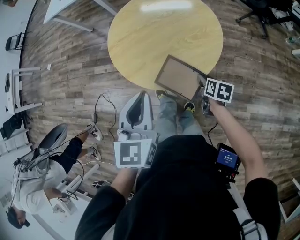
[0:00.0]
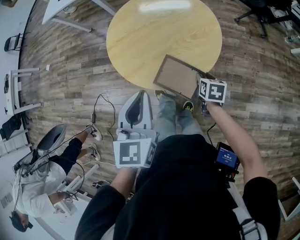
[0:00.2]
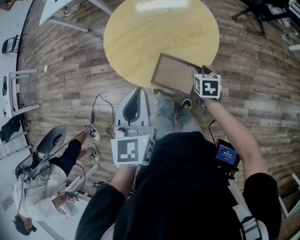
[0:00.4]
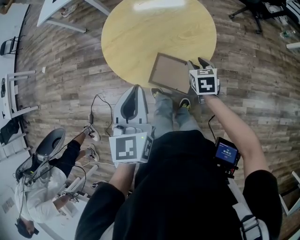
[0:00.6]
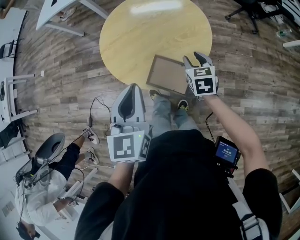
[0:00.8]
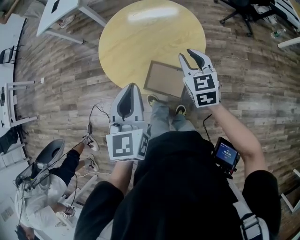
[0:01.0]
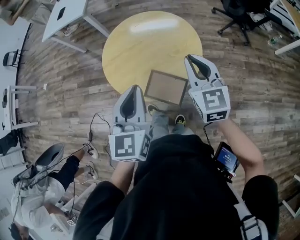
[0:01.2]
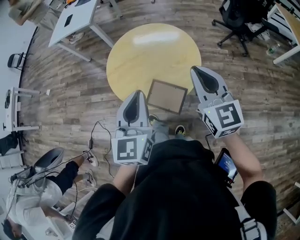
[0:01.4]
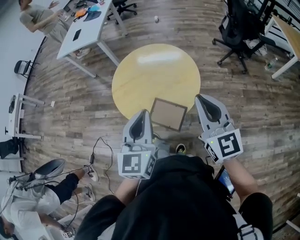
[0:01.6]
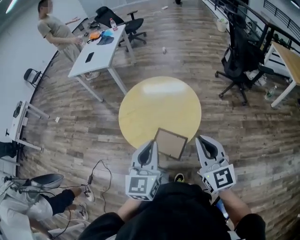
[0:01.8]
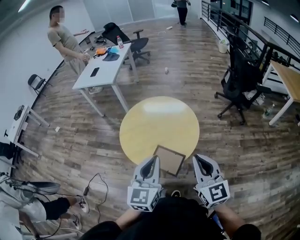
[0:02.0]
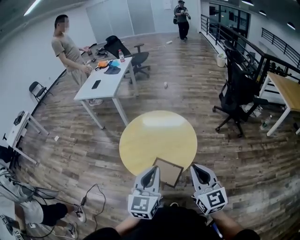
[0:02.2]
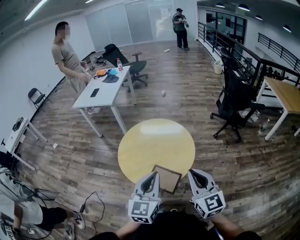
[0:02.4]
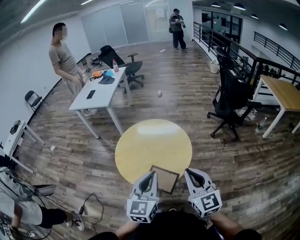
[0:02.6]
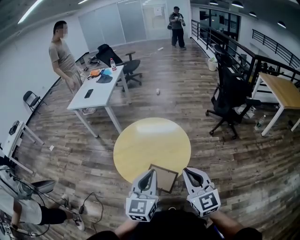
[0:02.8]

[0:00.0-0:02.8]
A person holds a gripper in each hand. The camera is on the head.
0:00.0 to 0:01.4: The right gripper shifts about 35 cm upward, tips its fingers upward by some 50 degrees, and closes up. Meanwhile the left gripper travels upward by some 10 cm.
0:01.4 to 0:02.8: The left gripper changes place by some 5 cm. Meanwhile the right gripper travels backward by roughly 10 cm.

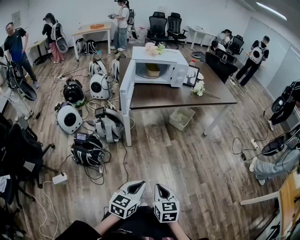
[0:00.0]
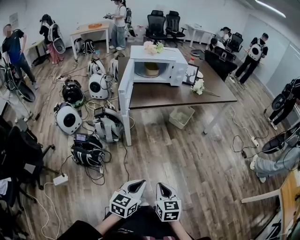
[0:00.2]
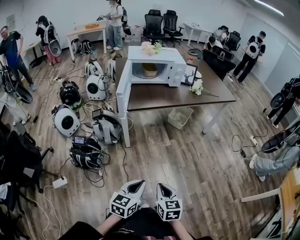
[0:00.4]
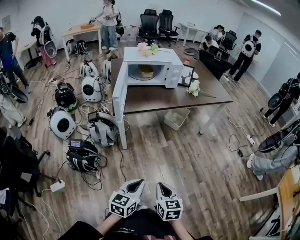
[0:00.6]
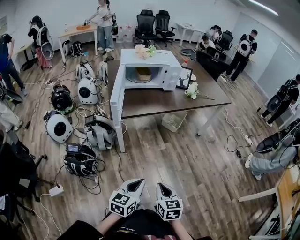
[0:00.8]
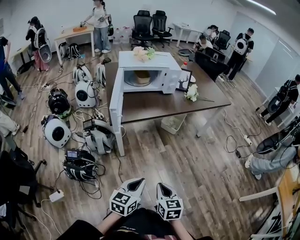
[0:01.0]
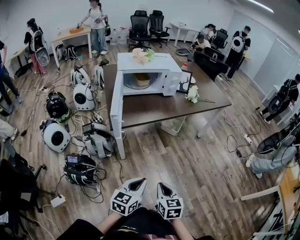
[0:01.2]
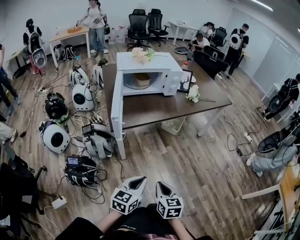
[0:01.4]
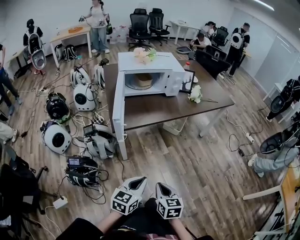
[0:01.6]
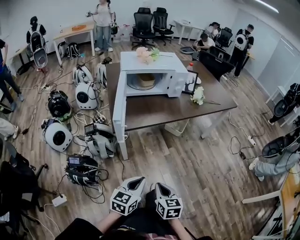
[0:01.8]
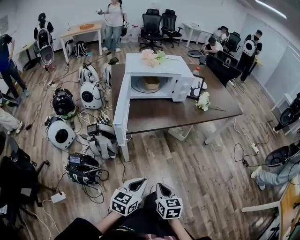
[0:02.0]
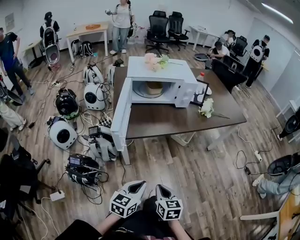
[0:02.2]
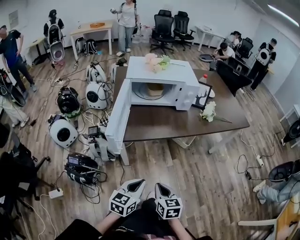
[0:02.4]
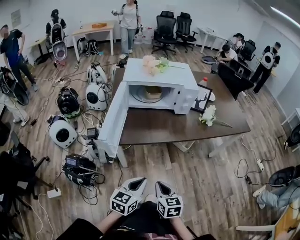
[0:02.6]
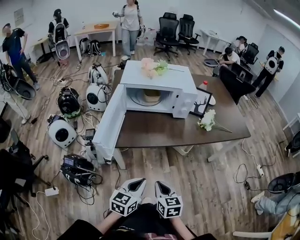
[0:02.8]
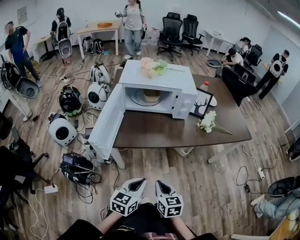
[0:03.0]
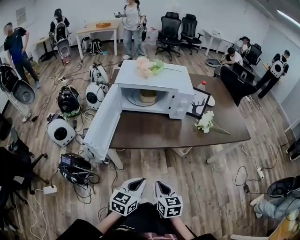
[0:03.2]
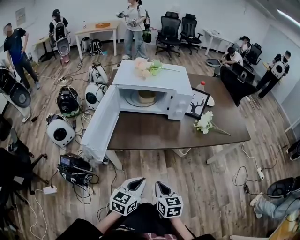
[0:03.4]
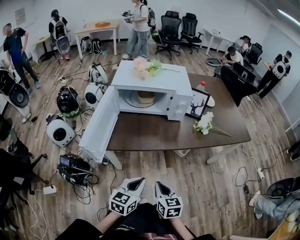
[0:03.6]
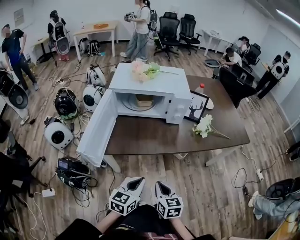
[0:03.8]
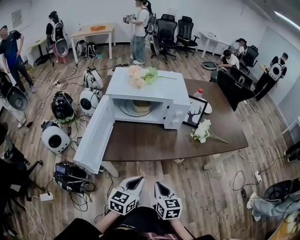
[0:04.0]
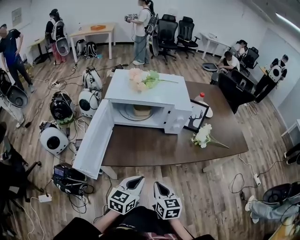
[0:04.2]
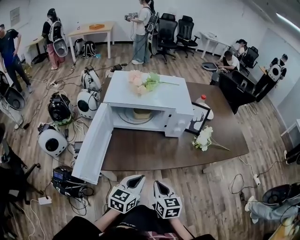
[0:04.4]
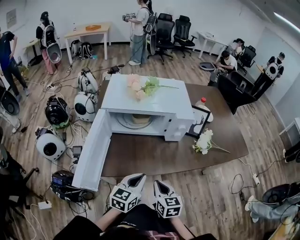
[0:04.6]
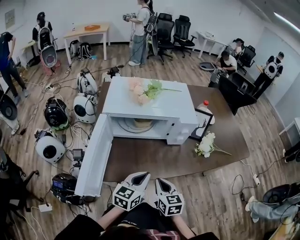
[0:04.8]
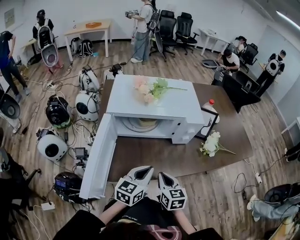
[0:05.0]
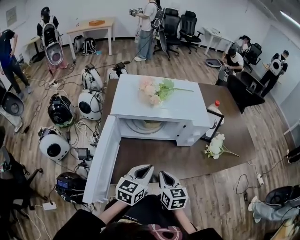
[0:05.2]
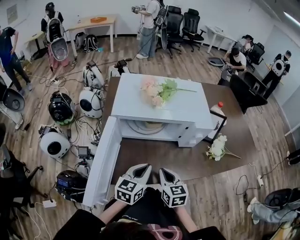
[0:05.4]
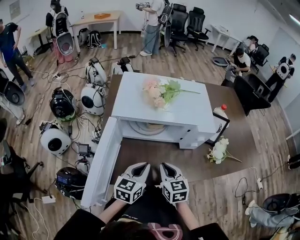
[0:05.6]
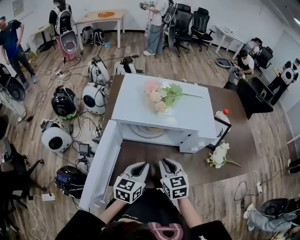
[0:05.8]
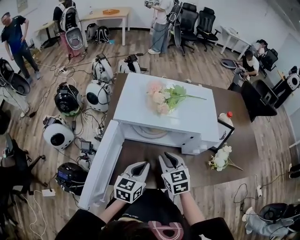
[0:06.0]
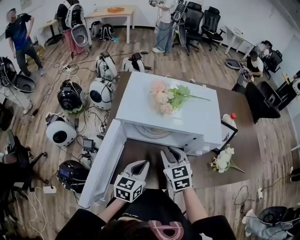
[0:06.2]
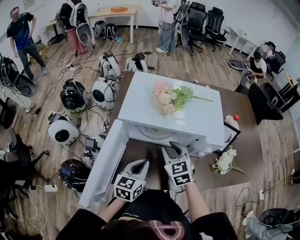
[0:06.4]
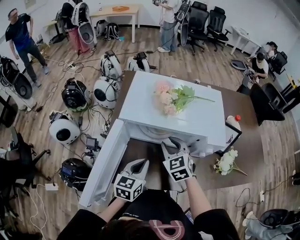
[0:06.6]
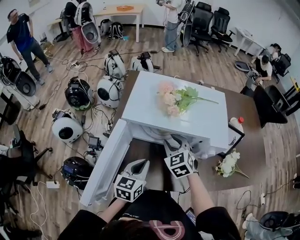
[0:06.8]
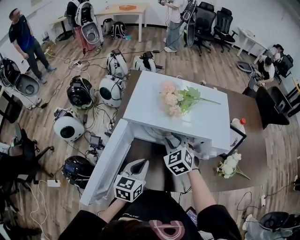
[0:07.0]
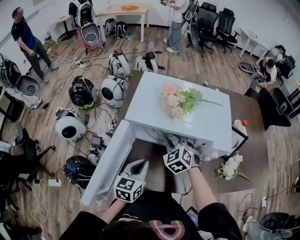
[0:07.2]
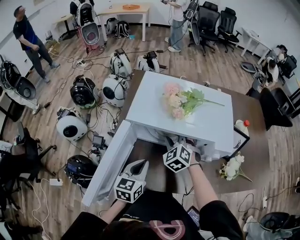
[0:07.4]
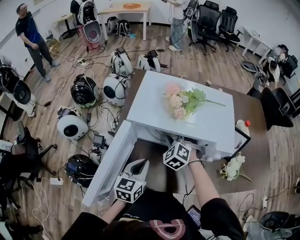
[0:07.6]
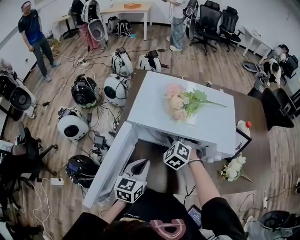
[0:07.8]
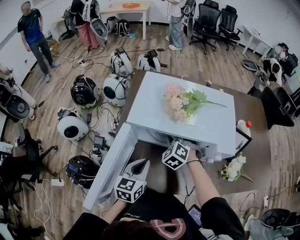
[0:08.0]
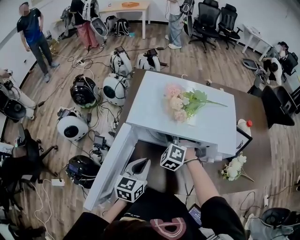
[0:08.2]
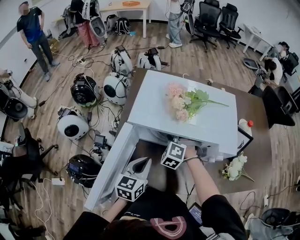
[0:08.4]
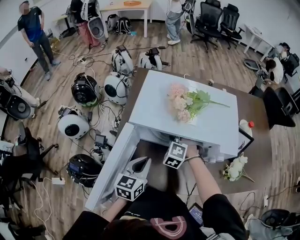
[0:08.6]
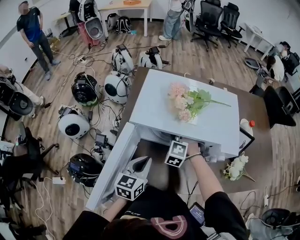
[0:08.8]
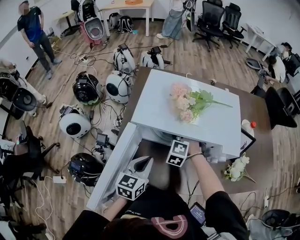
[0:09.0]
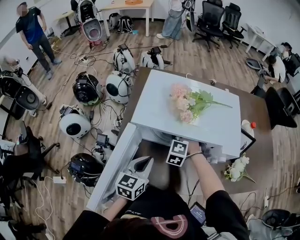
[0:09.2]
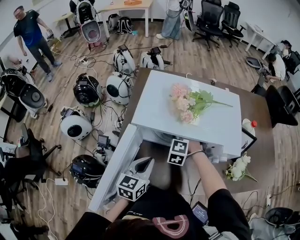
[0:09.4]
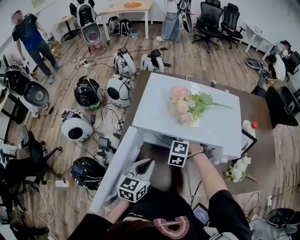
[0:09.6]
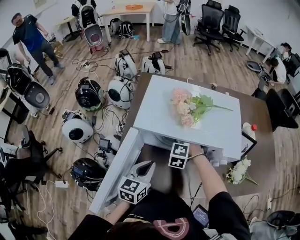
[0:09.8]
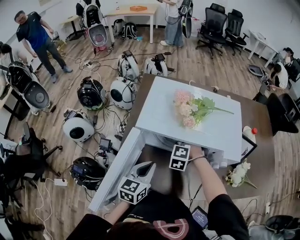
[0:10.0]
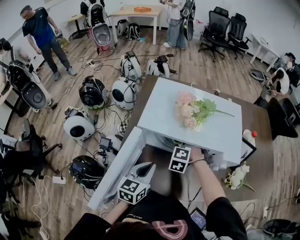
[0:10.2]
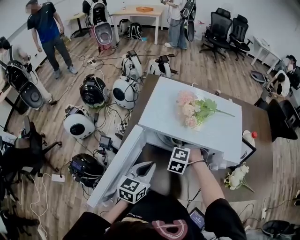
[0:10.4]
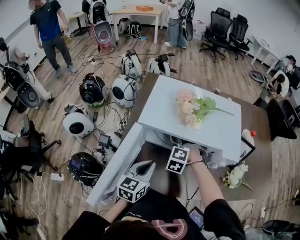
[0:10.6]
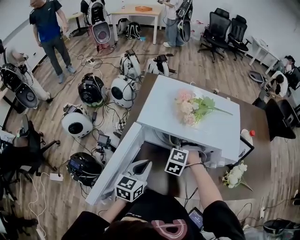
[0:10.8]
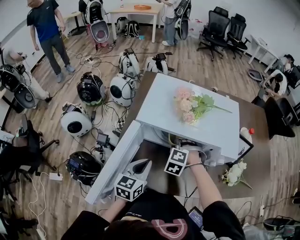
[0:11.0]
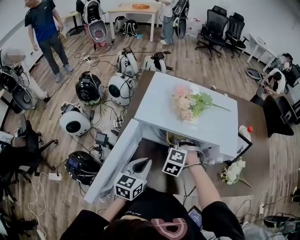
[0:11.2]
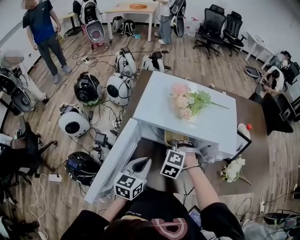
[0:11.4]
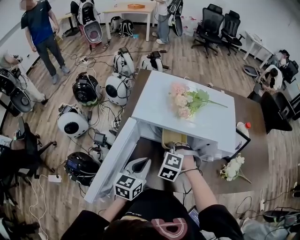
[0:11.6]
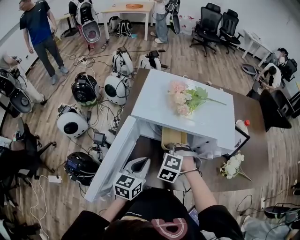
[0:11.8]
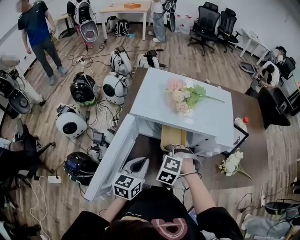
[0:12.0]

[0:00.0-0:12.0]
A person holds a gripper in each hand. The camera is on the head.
0:00.0 to 0:01.6: Both grippers travel together forward and to the left, about 20 cm.
0:01.6 to 0:03.0: The two grippers go approximately 20 cm forward and to the right.
0:03.0 to 0:04.4: The grippers both shift forward by approximately 15 cm.
0:04.4 to 0:06.0: The left gripper travels forward and to the left by roughly 20 cm; the right gripper goes approximately 25 cm forward, and changes its angle by roughly 20 degrees.
0:06.0 to 0:07.6: The right gripper moves forward, about 10 cm, and twists some 50 degrees counterclockwise, seen from behind. Meanwhile the left gripper shifts approximately 5 cm to the left.
0:07.6 to 0:09.0: The right gripper rotates roughly 20 degrees.
0:09.0 to 0:10.4: The grippers stay close to where they were, moving slightly.
0:10.4 to 0:12.0: The right gripper goes approximately 10 cm backward.

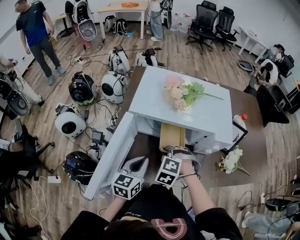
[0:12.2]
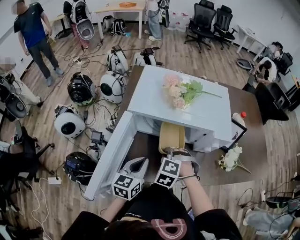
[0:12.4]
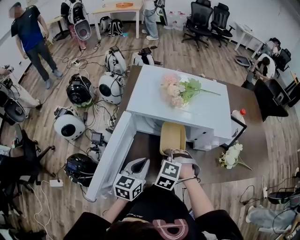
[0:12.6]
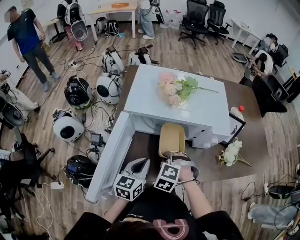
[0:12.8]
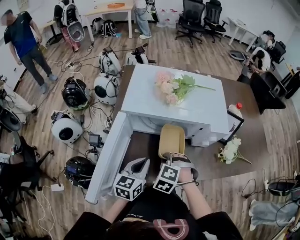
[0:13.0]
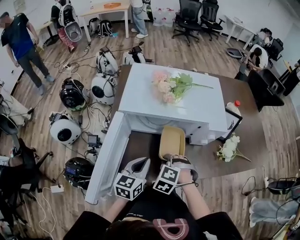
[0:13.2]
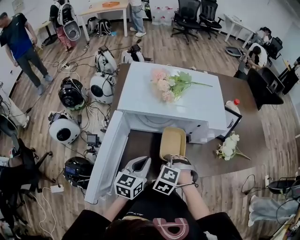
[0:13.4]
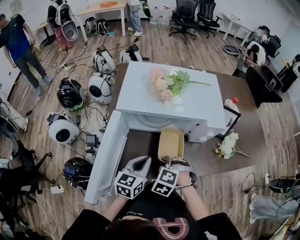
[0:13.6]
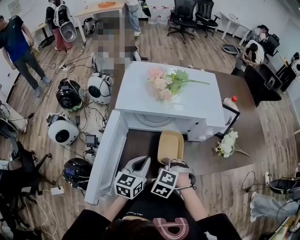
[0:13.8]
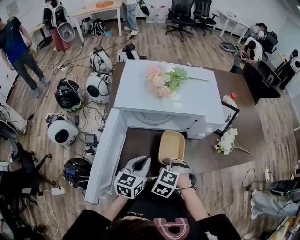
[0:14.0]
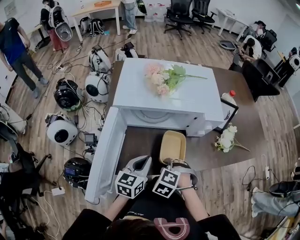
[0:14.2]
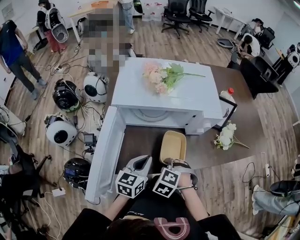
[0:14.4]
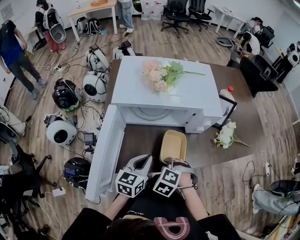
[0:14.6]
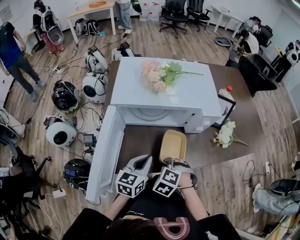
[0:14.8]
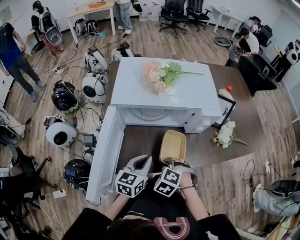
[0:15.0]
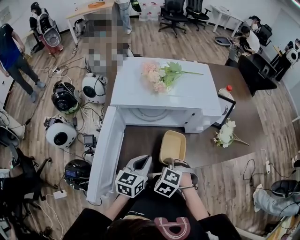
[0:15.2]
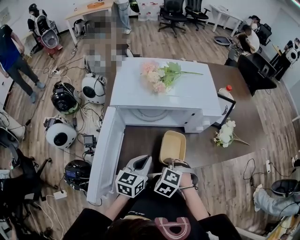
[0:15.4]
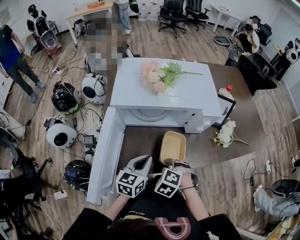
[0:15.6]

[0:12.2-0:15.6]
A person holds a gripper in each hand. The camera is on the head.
0:12.2 to 0:13.8: The right gripper heads backward, covering some 10 cm.
0:13.8 to 0:15.6: The grippers stay close to where they were, moving slightly.

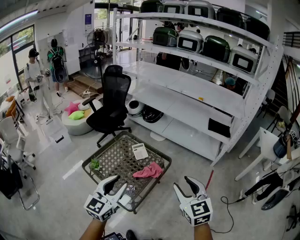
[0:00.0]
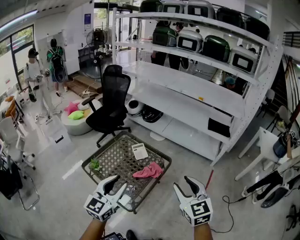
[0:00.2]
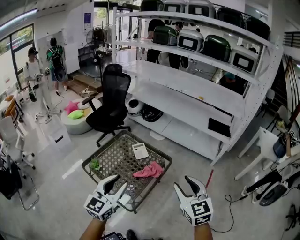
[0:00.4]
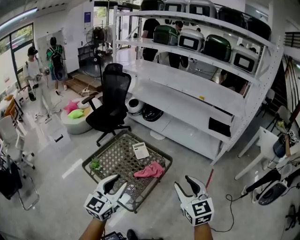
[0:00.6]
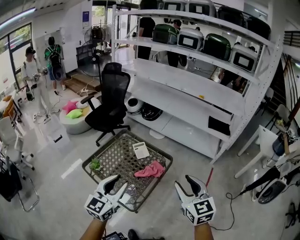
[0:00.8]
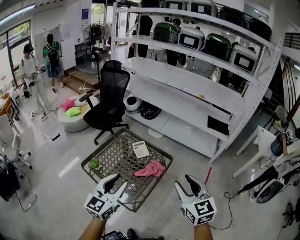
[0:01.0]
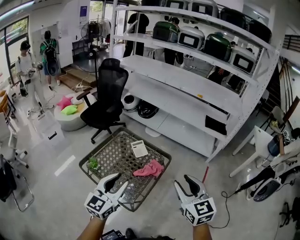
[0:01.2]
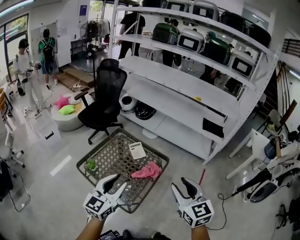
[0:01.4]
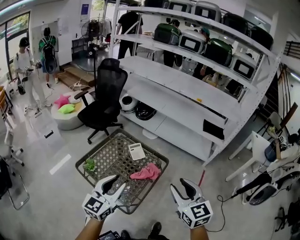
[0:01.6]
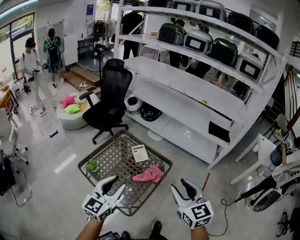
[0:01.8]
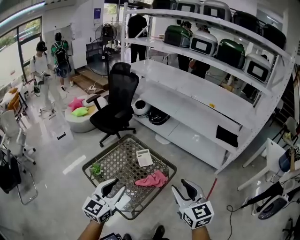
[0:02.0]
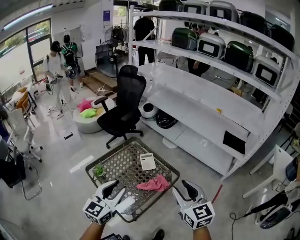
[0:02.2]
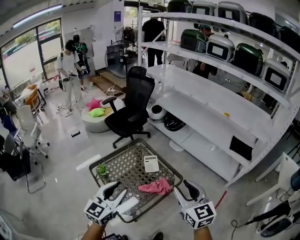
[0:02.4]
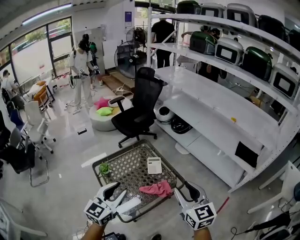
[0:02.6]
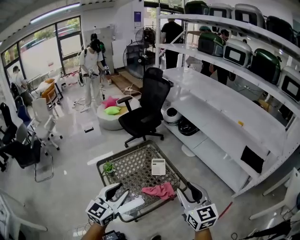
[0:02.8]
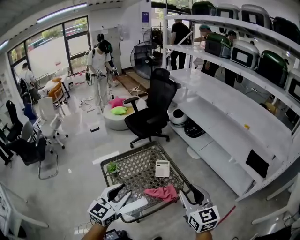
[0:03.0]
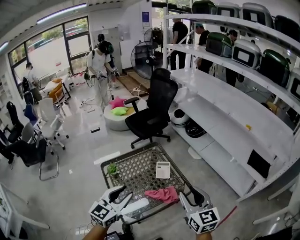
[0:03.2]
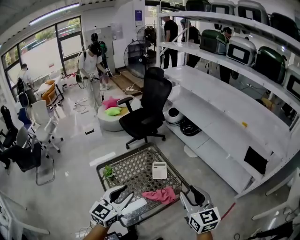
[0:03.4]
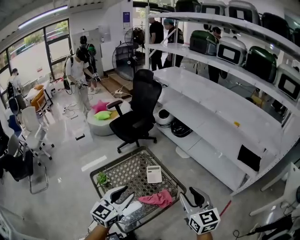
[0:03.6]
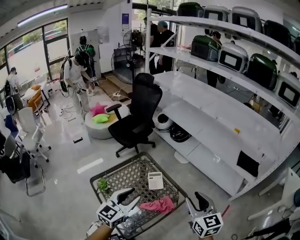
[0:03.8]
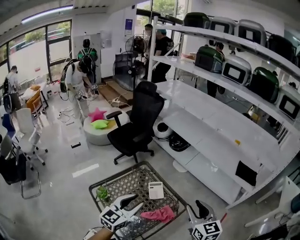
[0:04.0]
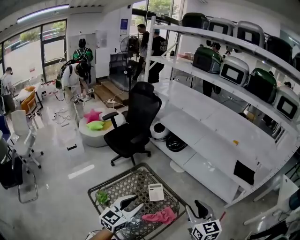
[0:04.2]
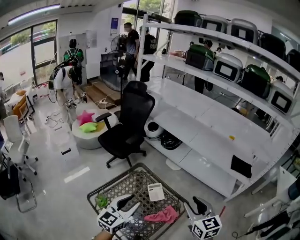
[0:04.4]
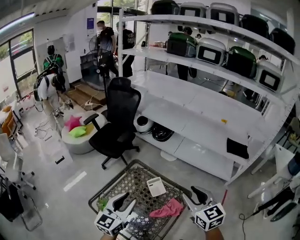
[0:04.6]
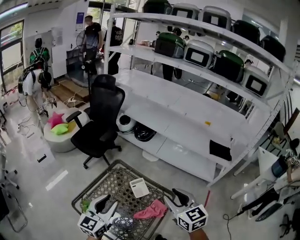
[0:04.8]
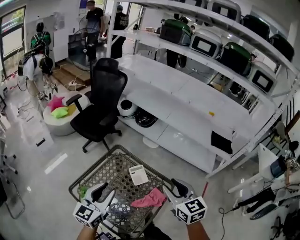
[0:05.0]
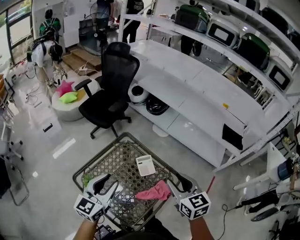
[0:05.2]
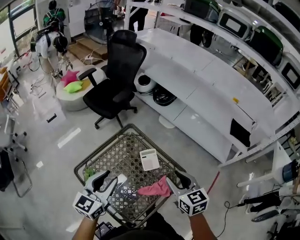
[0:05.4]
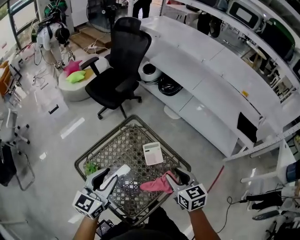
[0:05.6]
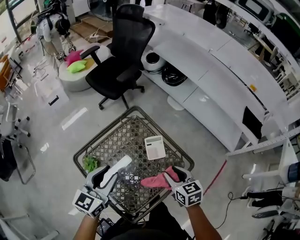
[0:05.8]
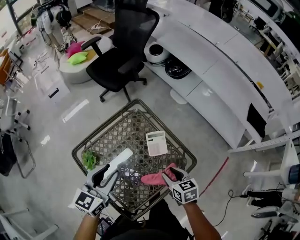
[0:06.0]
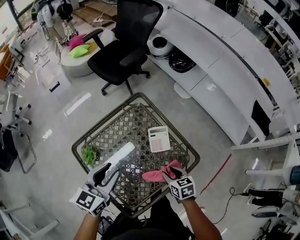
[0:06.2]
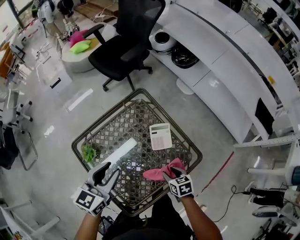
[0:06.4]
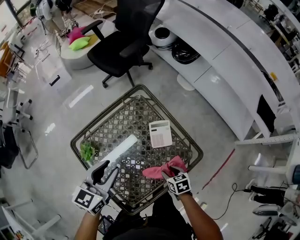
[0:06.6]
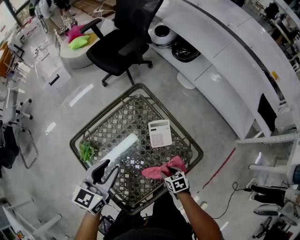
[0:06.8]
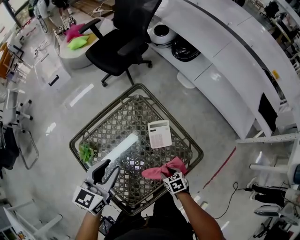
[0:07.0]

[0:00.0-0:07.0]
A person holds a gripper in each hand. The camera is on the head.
0:00.0 to 0:01.4: Both grippers travel together to the left, some 5 cm.
0:01.4 to 0:02.8: The left gripper is displaced to the right and forward by roughly 10 cm, and changes its angle by roughly 30 degrees; the right gripper shifts approximately 20 cm forward and to the right, and swivels some 30 degrees.
0:02.8 to 0:04.2: The left gripper travels forward by about 15 cm, while the right gripper heads forward, covering roughly 10 cm.
0:04.2 to 0:05.6: The left gripper goes about 10 cm to the left and downward, while the right gripper moves downward, forward and to the left, approximately 20 cm, and swivels approximately 20 degrees.
0:05.6 to 0:07.0: The left gripper heads downward, covering approximately 10 cm; the right gripper travels downward by roughly 35 cm, and points its fingers approximately 30 degrees further downward.
